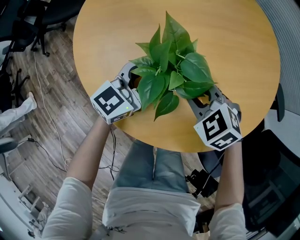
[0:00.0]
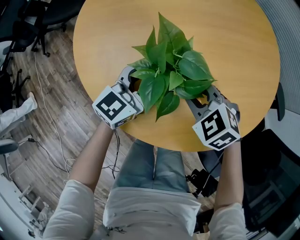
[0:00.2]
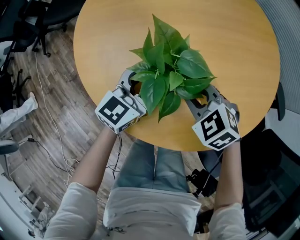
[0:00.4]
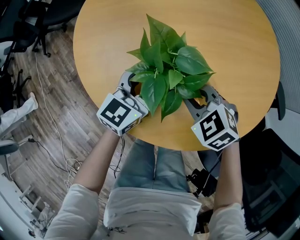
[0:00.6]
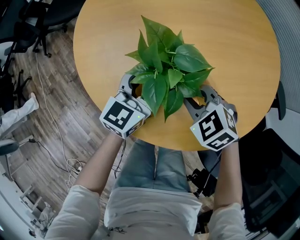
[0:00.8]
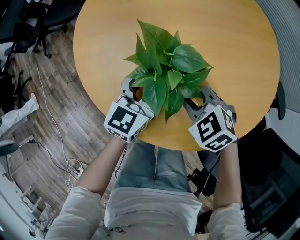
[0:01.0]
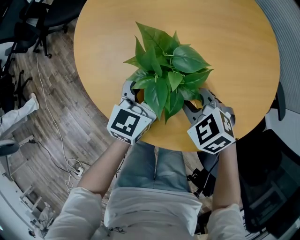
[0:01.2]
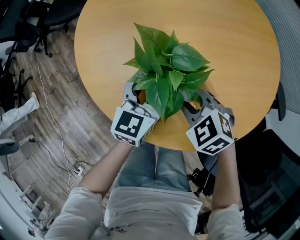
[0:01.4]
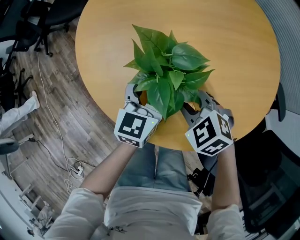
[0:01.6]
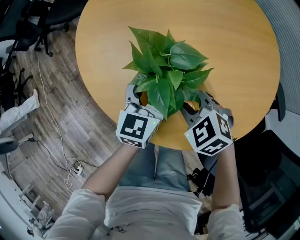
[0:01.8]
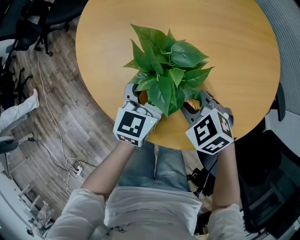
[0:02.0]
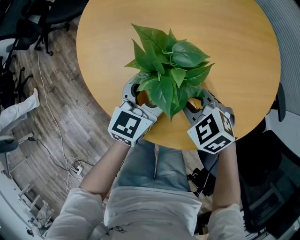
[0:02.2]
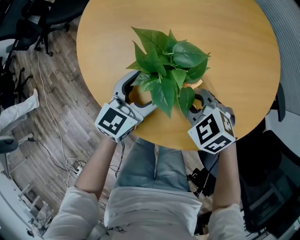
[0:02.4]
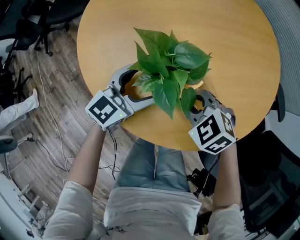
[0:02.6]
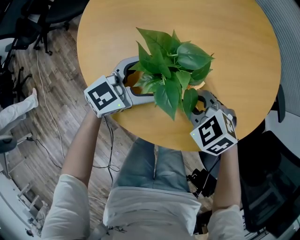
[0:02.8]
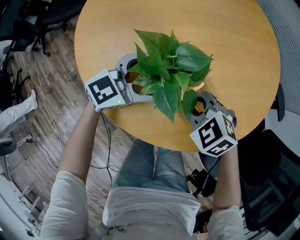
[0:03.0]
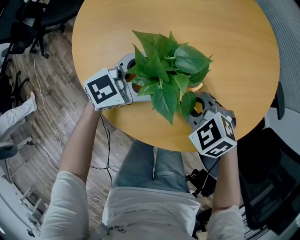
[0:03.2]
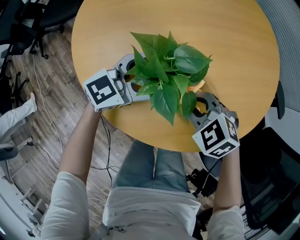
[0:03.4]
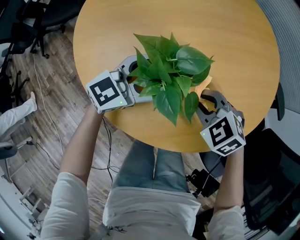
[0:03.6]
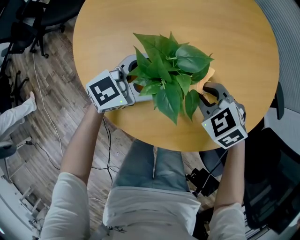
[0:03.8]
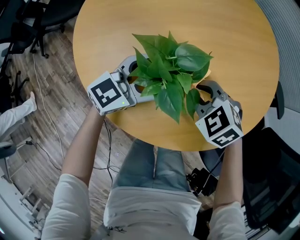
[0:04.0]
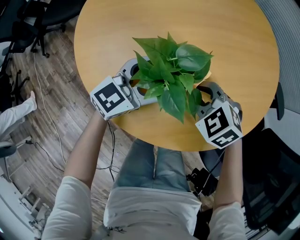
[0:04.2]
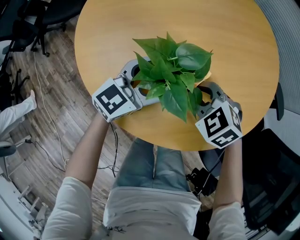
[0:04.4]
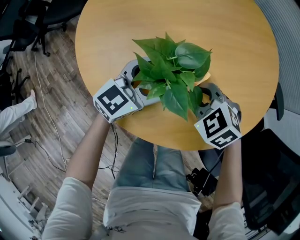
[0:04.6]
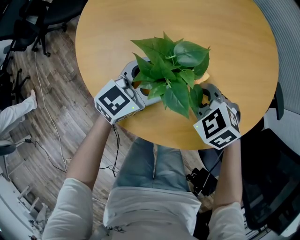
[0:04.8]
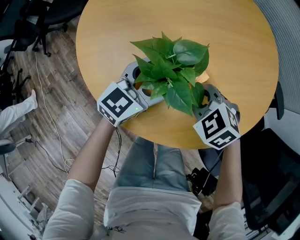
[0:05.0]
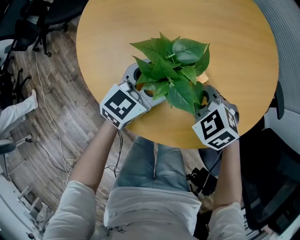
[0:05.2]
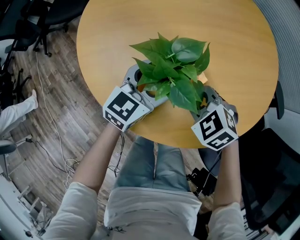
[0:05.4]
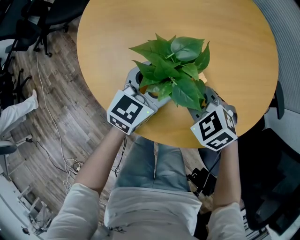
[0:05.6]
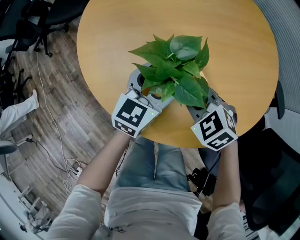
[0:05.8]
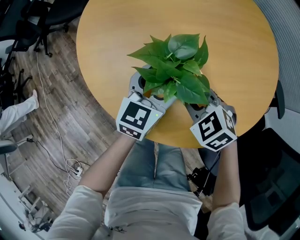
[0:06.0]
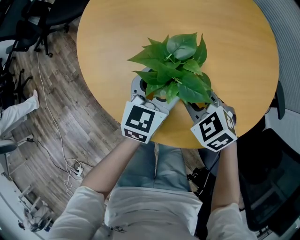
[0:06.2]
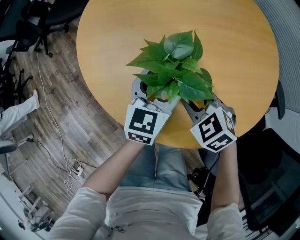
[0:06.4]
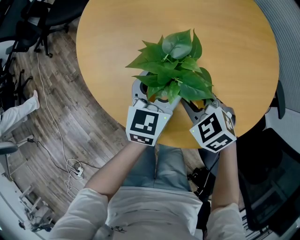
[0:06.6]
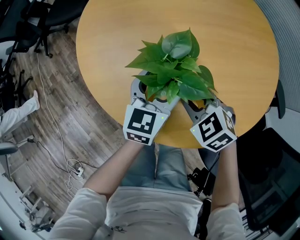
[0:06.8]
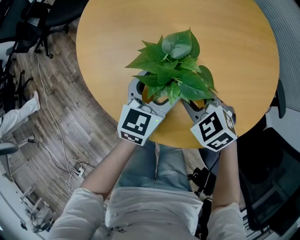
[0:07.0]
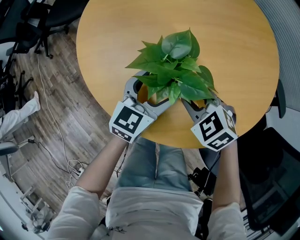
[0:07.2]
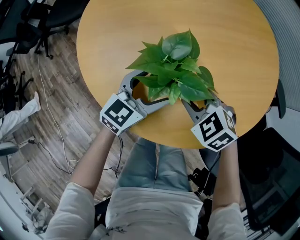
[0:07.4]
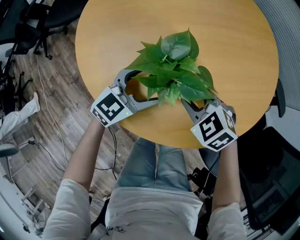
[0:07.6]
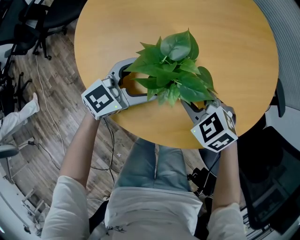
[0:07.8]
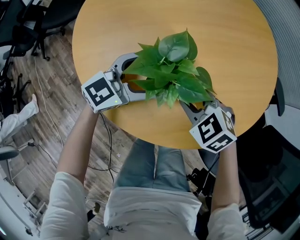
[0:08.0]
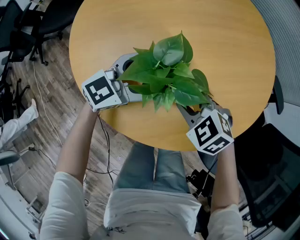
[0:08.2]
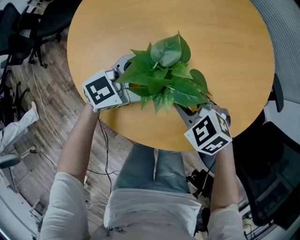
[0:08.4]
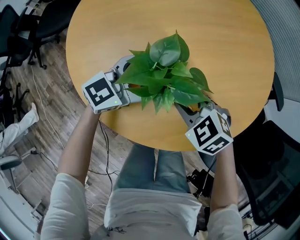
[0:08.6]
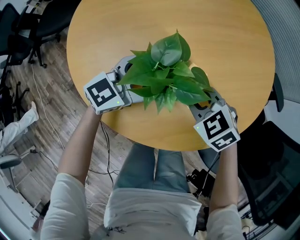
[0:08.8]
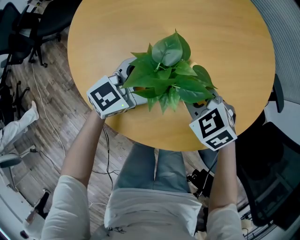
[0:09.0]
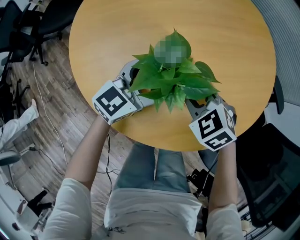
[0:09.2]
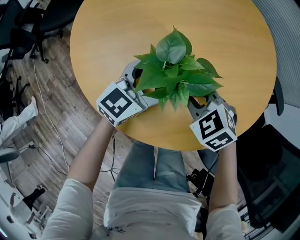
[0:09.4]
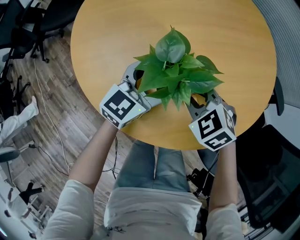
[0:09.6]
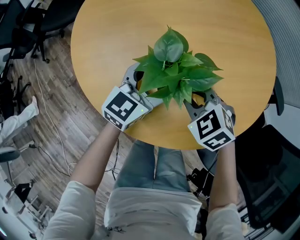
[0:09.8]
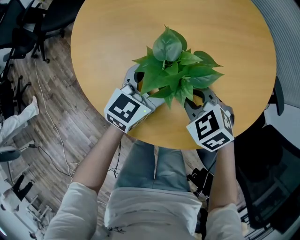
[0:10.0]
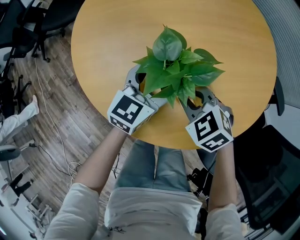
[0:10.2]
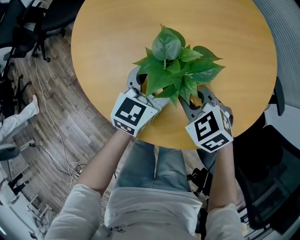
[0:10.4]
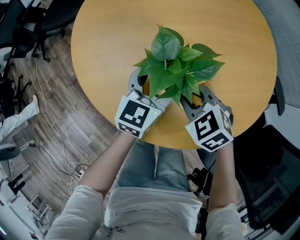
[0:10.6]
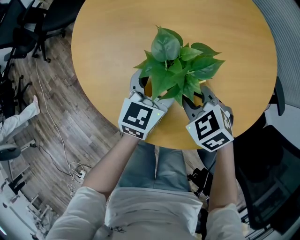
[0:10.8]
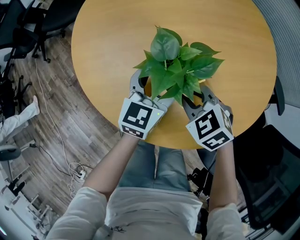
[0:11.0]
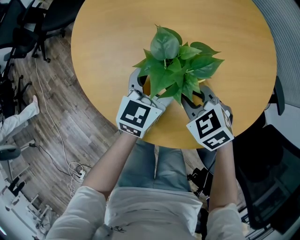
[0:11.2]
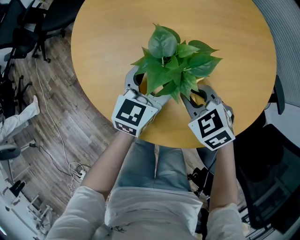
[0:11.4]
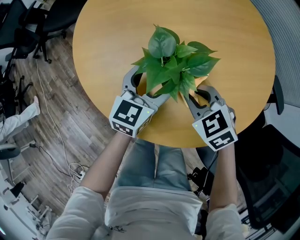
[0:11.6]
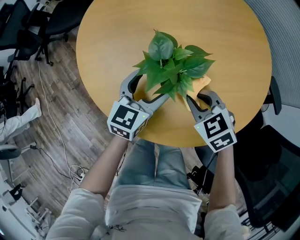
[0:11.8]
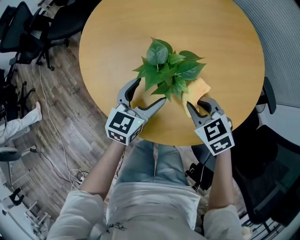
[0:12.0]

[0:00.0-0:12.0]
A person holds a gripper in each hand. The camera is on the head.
0:00.0 to 0:01.6: The left gripper swivels some 30 degrees.
0:01.6 to 0:03.0: The left gripper swivels some 50 degrees.
0:03.0 to 0:04.4: The grippers stay close to where they were, moving slightly.
0:04.4 to 0:06.0: The left gripper swivels about 30 degrees.
0:06.0 to 0:07.6: The left gripper rotates some 30 degrees.
0:07.6 to 0:09.0: The left gripper changes place by about 5 cm.
0:09.0 to 0:10.4: The left gripper swivels roughly 30 degrees.
0:10.4 to 0:12.0: The left gripper ends up some 5 cm from where it was; the right gripper shifts approximately 5 cm to the right.

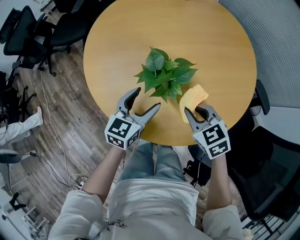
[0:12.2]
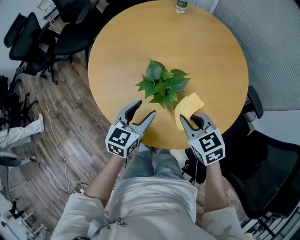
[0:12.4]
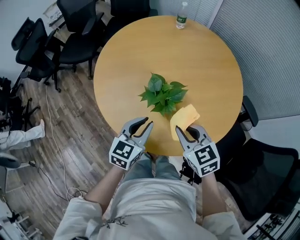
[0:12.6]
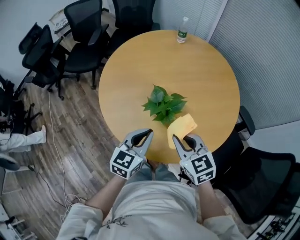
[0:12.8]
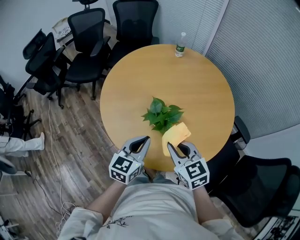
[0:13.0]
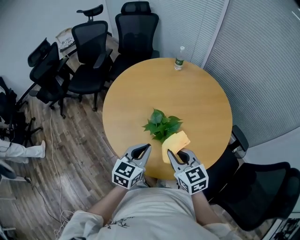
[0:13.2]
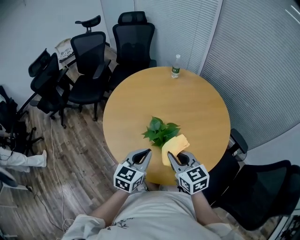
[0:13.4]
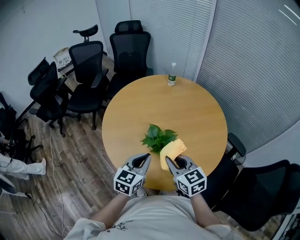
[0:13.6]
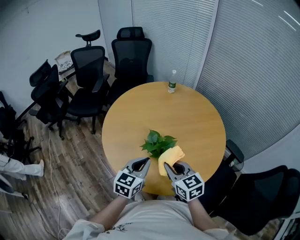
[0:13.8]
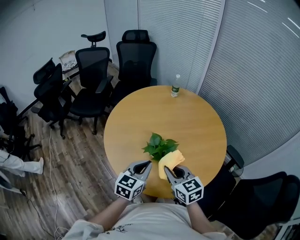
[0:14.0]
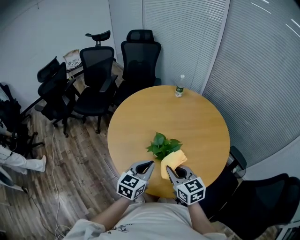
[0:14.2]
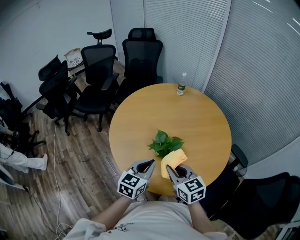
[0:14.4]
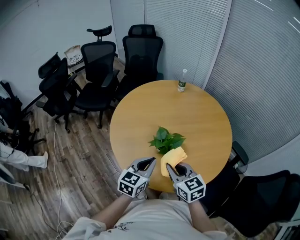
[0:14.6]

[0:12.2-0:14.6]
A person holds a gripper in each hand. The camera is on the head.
0:12.2 to 0:13.4: Both grippers travel together upward, about 15 cm. The right gripper rotates roughly 20 degrees. The left gripper closes.
0:13.4 to 0:14.6: There are only small adjustments of the grippers.

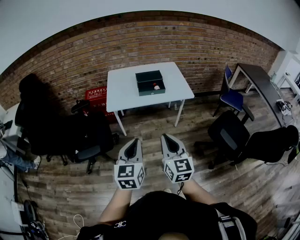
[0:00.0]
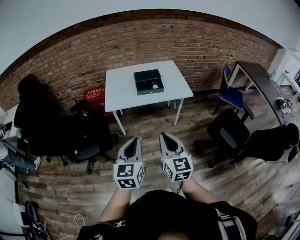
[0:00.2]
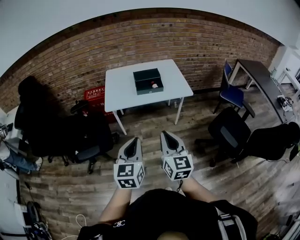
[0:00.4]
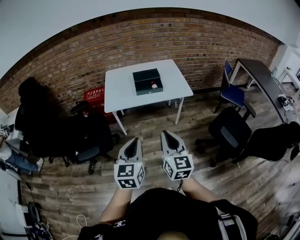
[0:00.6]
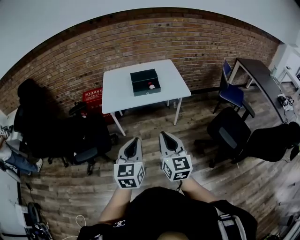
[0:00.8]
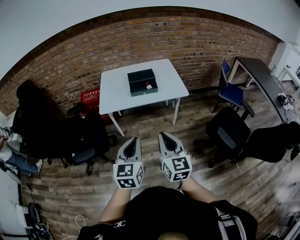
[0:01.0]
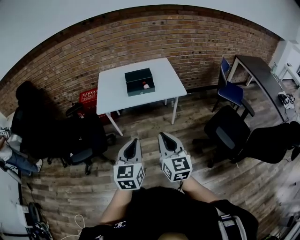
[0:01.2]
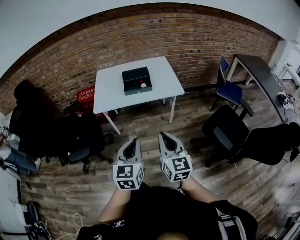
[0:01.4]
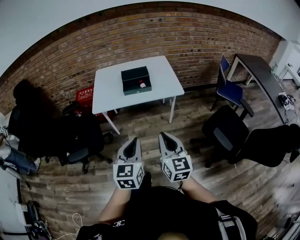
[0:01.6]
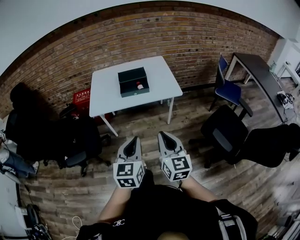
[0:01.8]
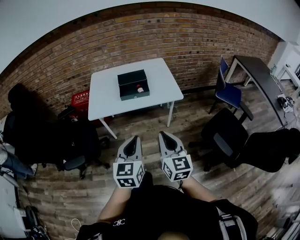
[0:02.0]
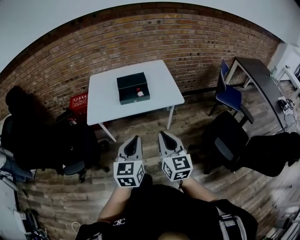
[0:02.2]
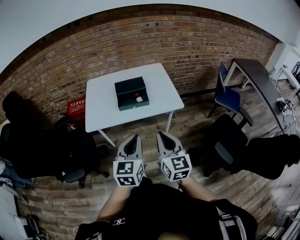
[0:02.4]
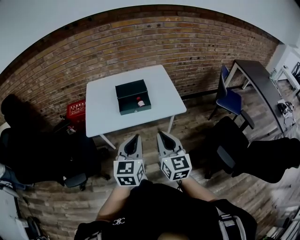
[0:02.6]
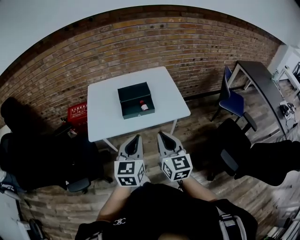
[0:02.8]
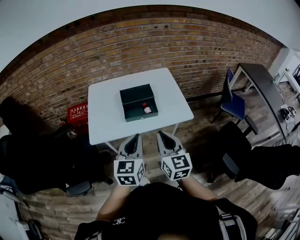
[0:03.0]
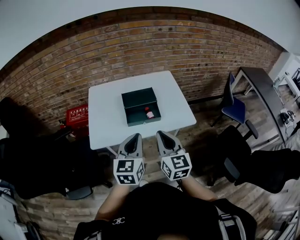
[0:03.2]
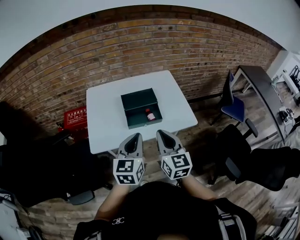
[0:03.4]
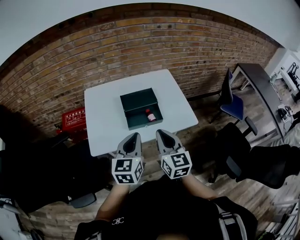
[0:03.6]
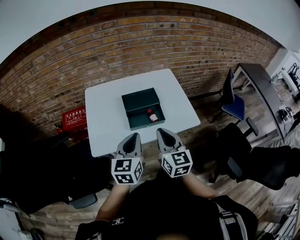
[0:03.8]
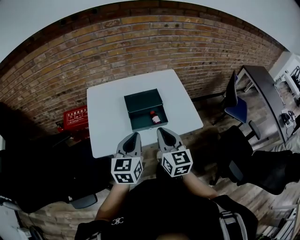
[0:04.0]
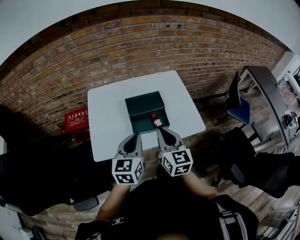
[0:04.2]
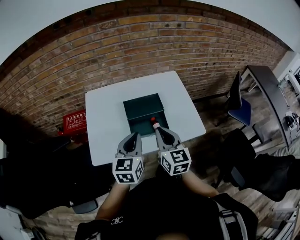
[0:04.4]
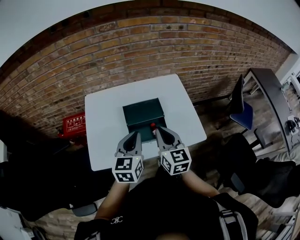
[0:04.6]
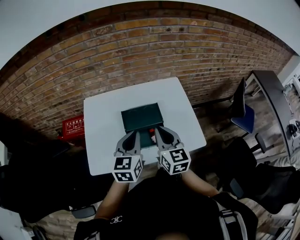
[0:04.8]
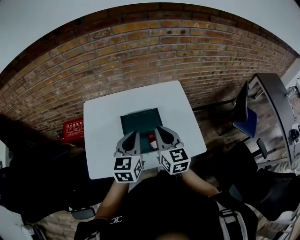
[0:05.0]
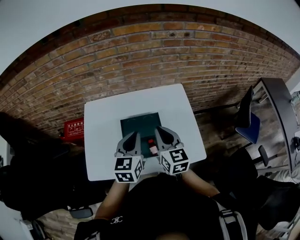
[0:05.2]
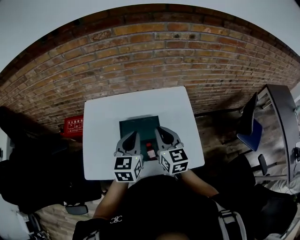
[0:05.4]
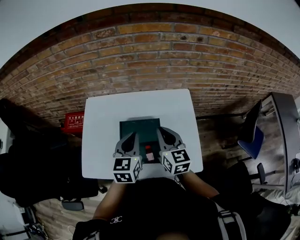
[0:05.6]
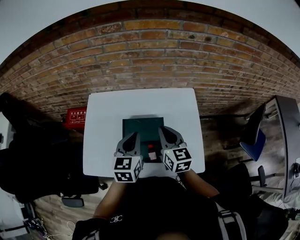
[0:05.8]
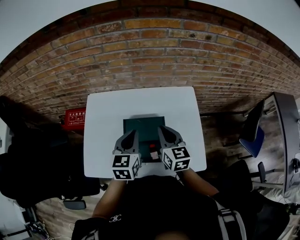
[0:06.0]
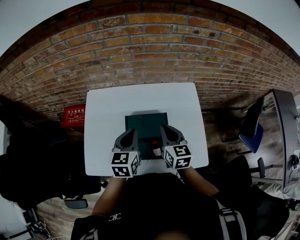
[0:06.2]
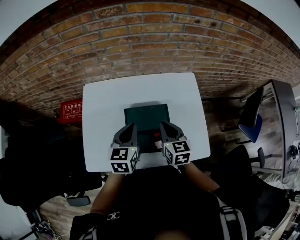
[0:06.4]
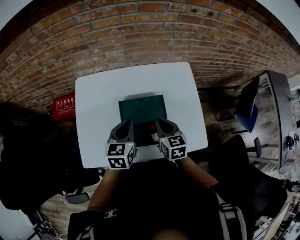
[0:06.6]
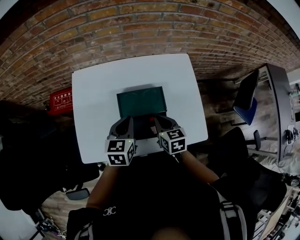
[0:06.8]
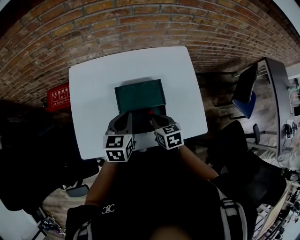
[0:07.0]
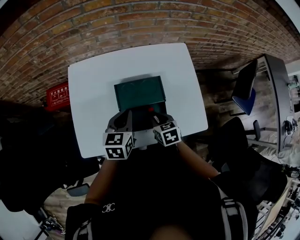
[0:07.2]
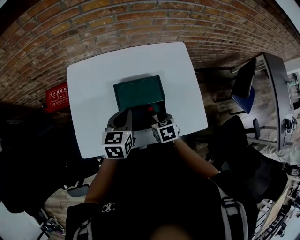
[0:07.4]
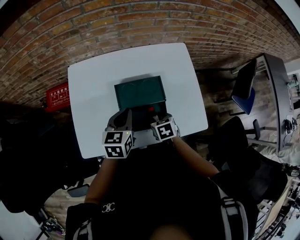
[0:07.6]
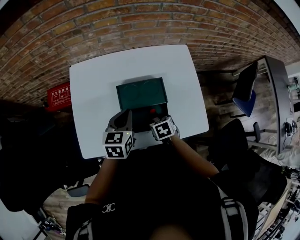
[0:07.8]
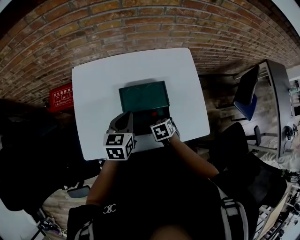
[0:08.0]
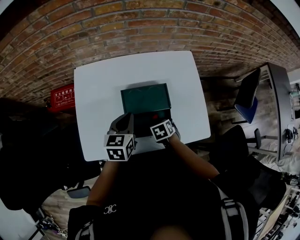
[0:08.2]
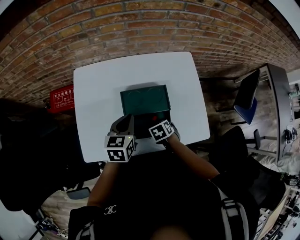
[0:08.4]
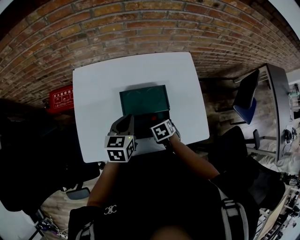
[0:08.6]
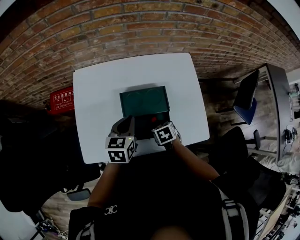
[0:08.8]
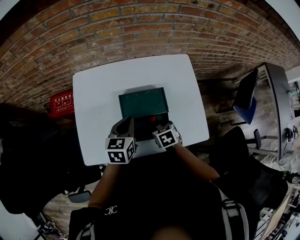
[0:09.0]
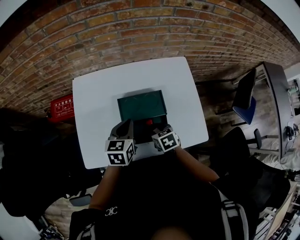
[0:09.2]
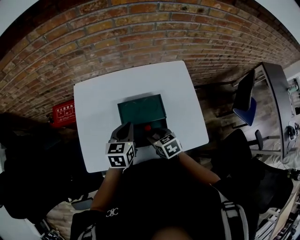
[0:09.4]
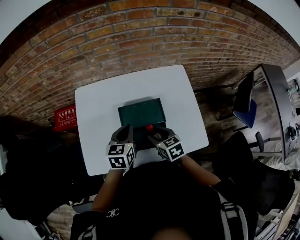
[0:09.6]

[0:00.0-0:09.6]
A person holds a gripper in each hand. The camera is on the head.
0:00.0 to 0:01.6: The left gripper heads to the right, covering approximately 15 cm, while the right gripper heads to the right and forward, covering roughly 15 cm.
0:01.6 to 0:03.2: Both grippers travel together forward, roughly 30 cm.
0:03.2 to 0:04.8: The two grippers go about 25 cm forward.
0:04.8 to 0:06.4: The two grippers go about 15 cm forward and downward.
0:06.4 to 0:08.0: The right gripper travels downward by approximately 20 cm, tips its fingers downward by about 40 degrees, and opens its fingers. The left gripper travels downward by some 5 cm.
0:08.0 to 0:09.6: The right gripper moves upward, about 10 cm, and turns by roughly 30 degrees.
